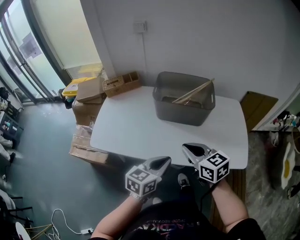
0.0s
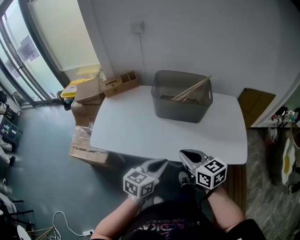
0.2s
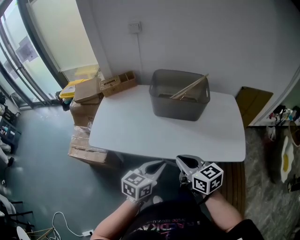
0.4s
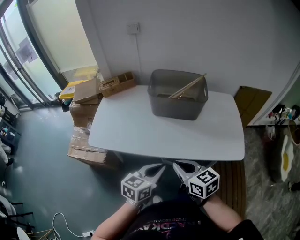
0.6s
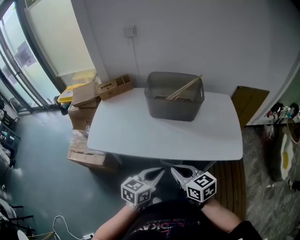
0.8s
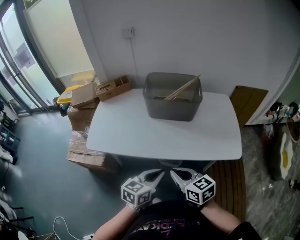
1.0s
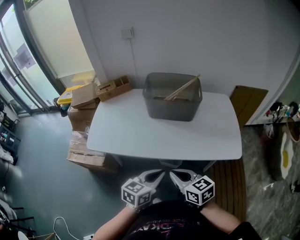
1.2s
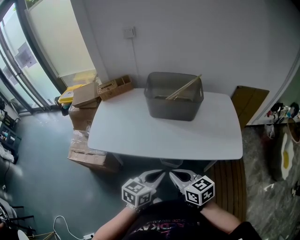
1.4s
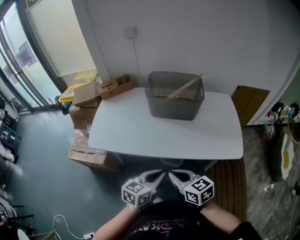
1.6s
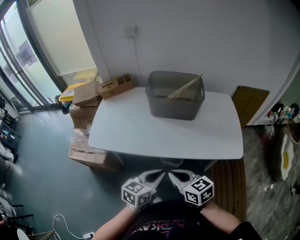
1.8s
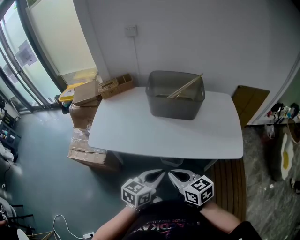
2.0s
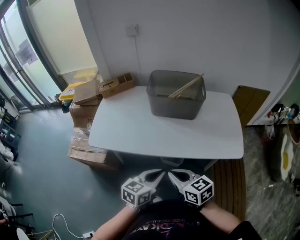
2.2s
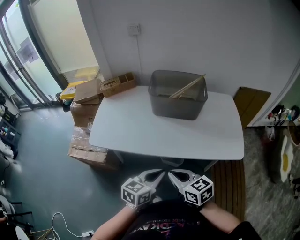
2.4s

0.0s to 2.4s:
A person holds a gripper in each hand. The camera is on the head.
0.0s to 1.2s: The right gripper moves backward, approximately 15 cm. Meanwhile the left gripper goes approximately 10 cm backward.
1.2s to 2.4s: The grippers move only a little.

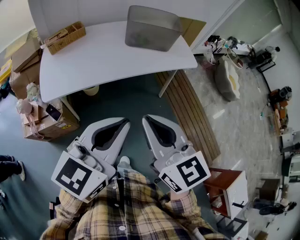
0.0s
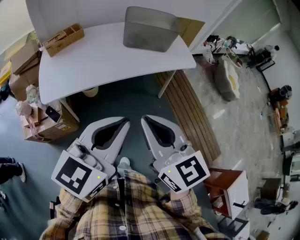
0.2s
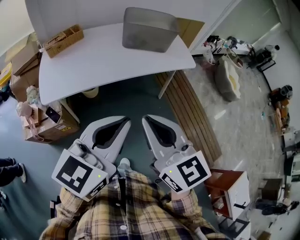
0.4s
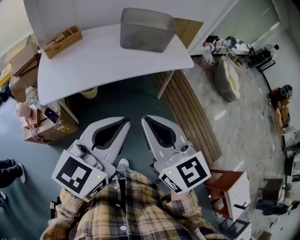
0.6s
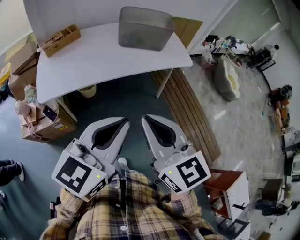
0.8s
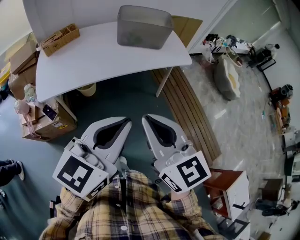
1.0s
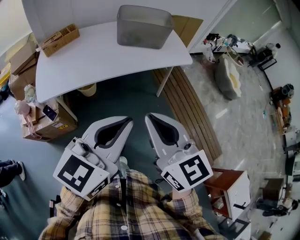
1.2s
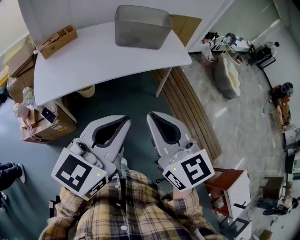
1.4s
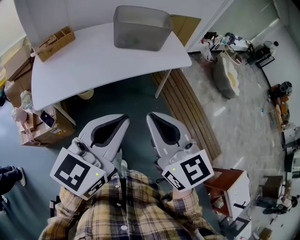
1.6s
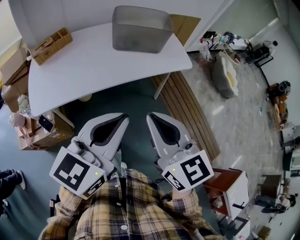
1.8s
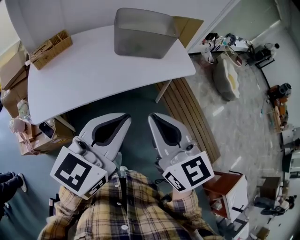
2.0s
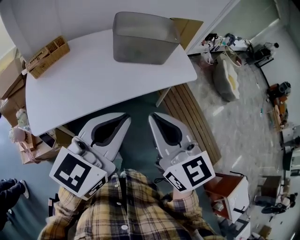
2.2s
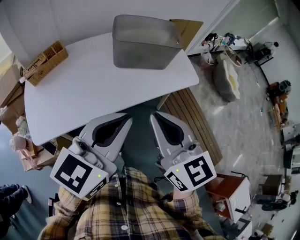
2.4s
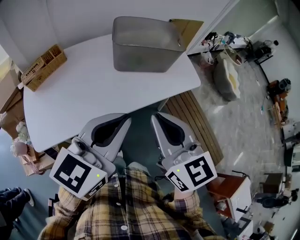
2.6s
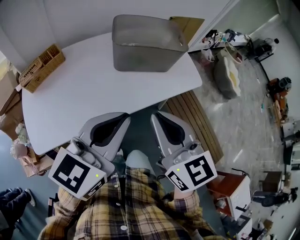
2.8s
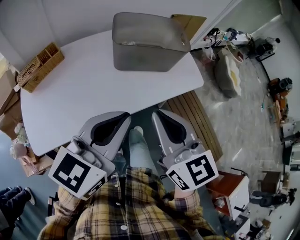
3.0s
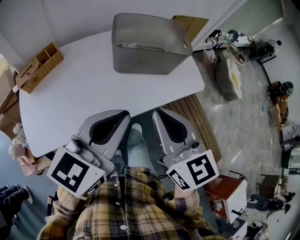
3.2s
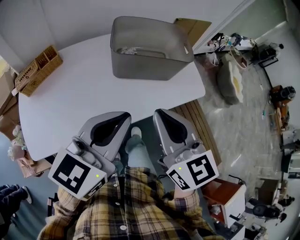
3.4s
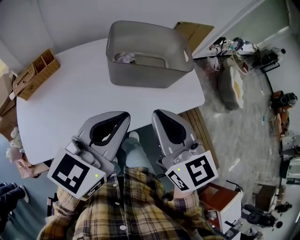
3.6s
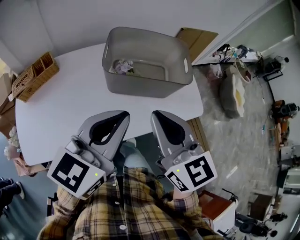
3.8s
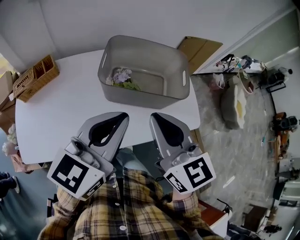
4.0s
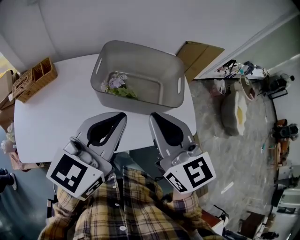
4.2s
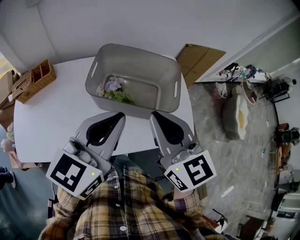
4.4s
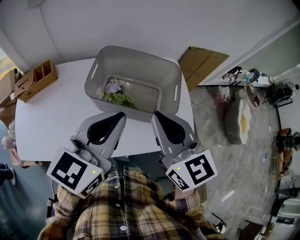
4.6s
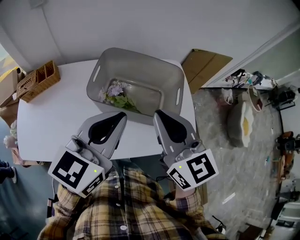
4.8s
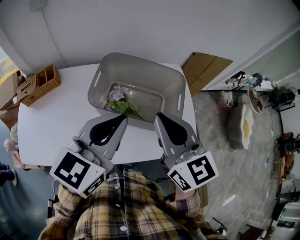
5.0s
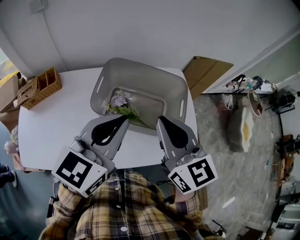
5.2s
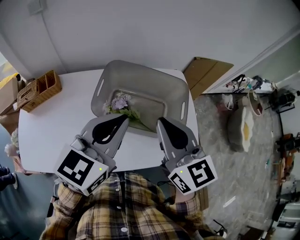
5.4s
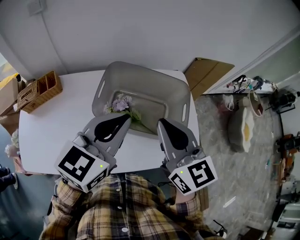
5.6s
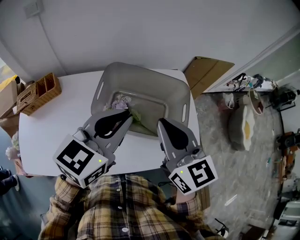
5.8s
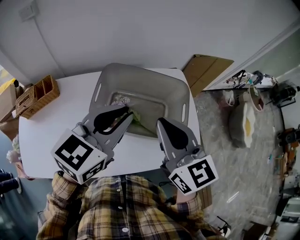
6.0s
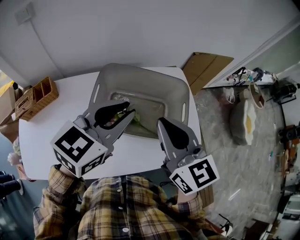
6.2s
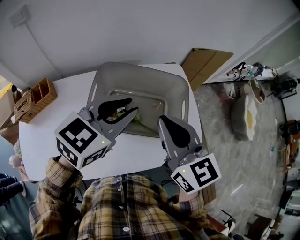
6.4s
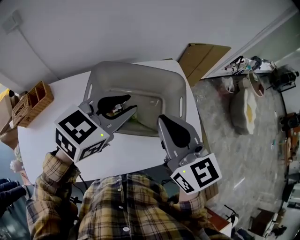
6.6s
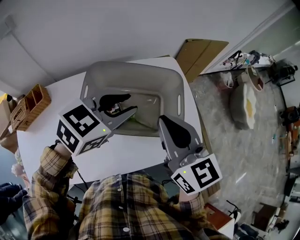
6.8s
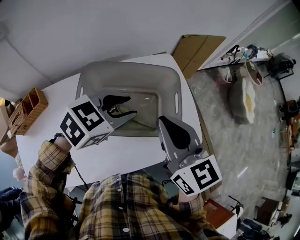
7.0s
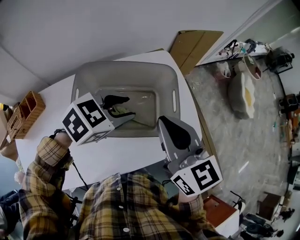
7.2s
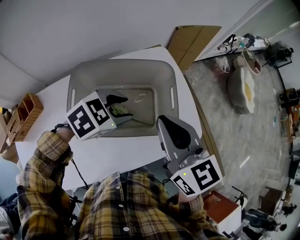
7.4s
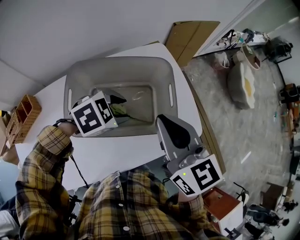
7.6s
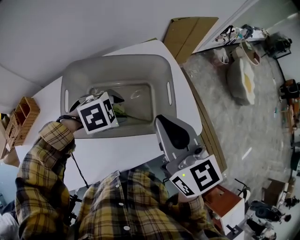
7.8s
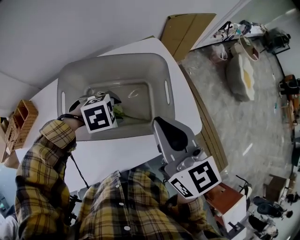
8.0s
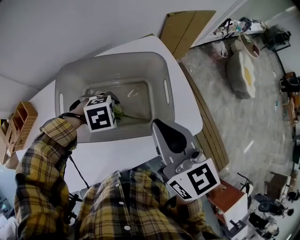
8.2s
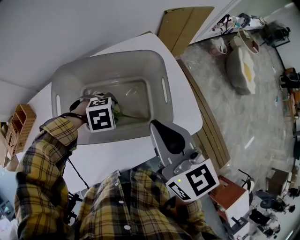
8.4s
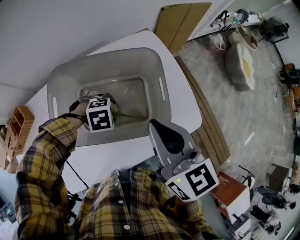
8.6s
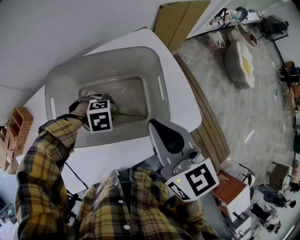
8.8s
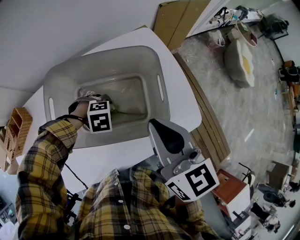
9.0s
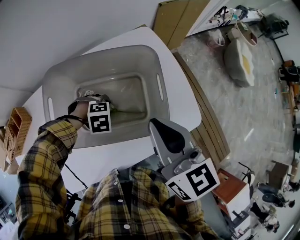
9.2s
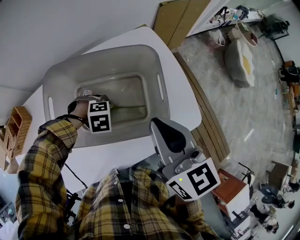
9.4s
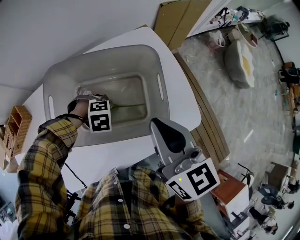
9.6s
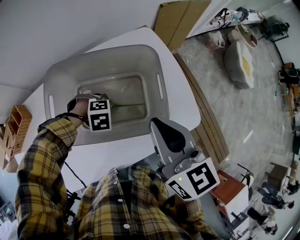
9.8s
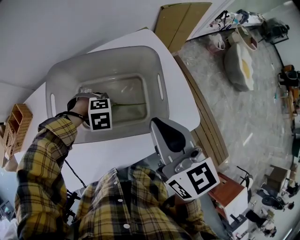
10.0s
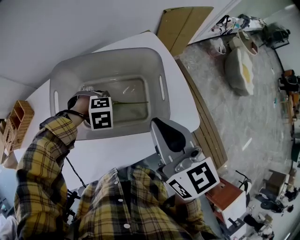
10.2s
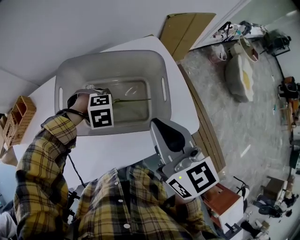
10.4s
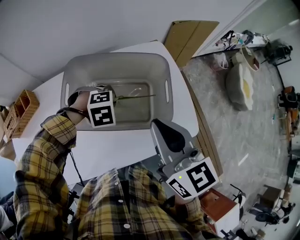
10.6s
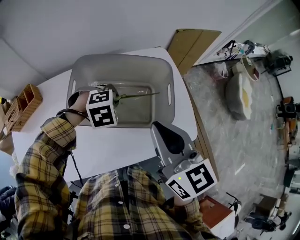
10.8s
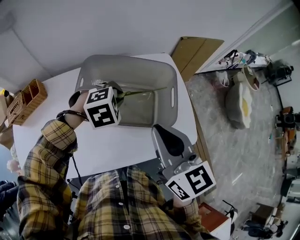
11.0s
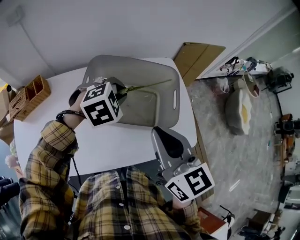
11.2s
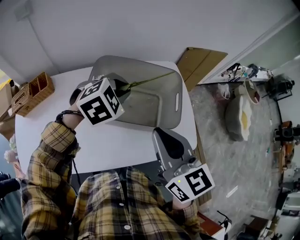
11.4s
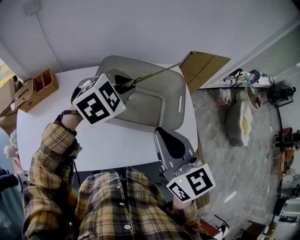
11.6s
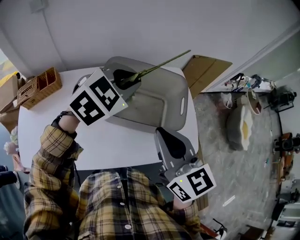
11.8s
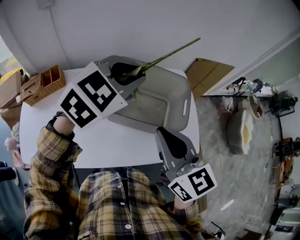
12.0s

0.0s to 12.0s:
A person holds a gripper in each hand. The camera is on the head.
0.0s to 1.6s: The two grippers go roughly 5 cm to the right.
1.6s to 3.0s: The grippers both shift forward by approximately 25 cm.
3.0s to 4.4s: The grippers both shift forward and to the right by about 25 cm.
4.4s to 6.0s: Both grippers move forward, some 10 cm.
6.0s to 7.6s: The left gripper is displaced downward by some 20 cm, tips its fingers downward by roughly 40 degrees, and opens; the right gripper moves approximately 5 cm.
7.6s to 9.0s: The left gripper travels downward by about 15 cm, and turns by about 30 degrees.
9.0s to 10.4s: The left gripper is displaced upward by roughly 5 cm, and closes.
10.4s to 12.0s: The right gripper shifts by roughly 10 cm. Meanwhile the left gripper shifts approximately 35 cm upward, and points its fingers about 50 degrees further upward.

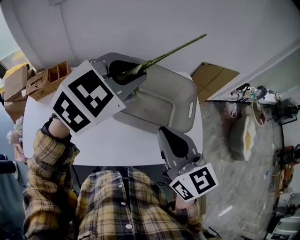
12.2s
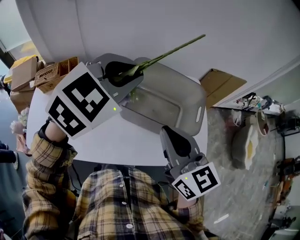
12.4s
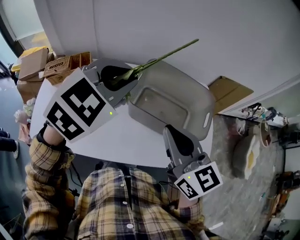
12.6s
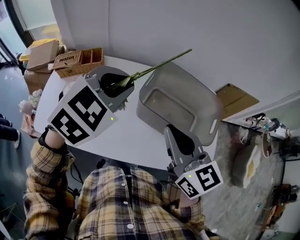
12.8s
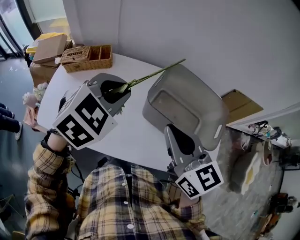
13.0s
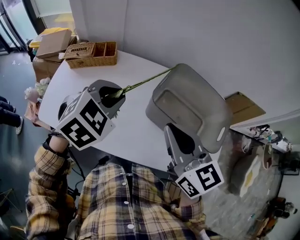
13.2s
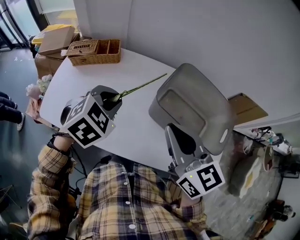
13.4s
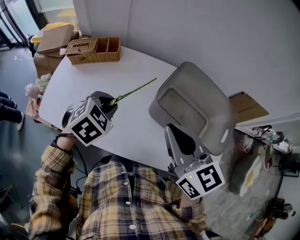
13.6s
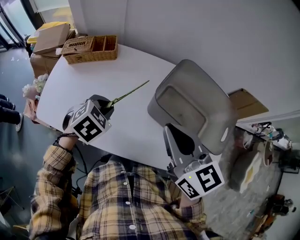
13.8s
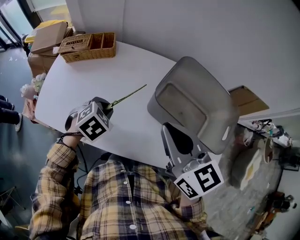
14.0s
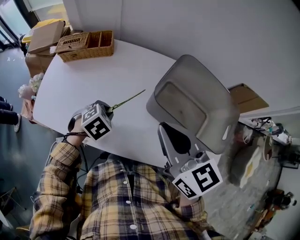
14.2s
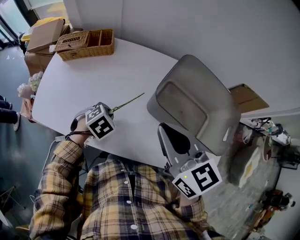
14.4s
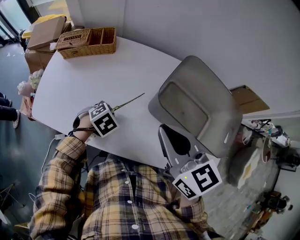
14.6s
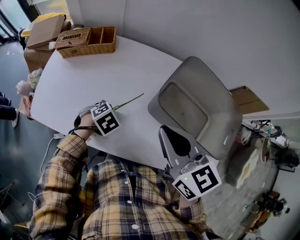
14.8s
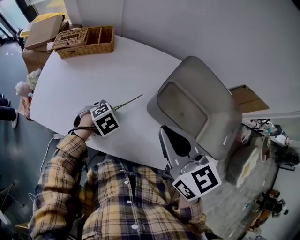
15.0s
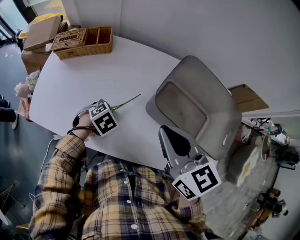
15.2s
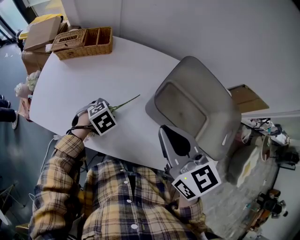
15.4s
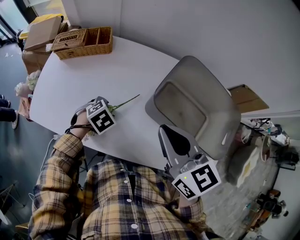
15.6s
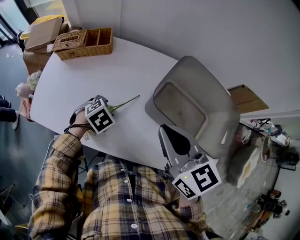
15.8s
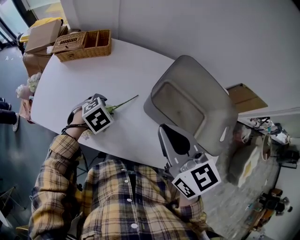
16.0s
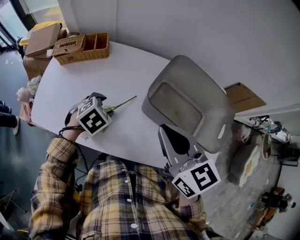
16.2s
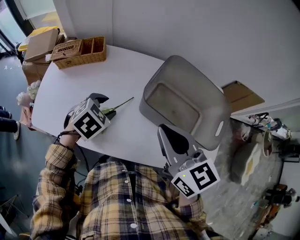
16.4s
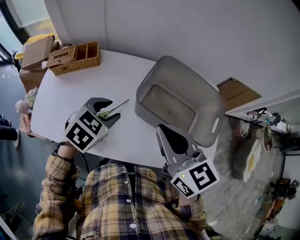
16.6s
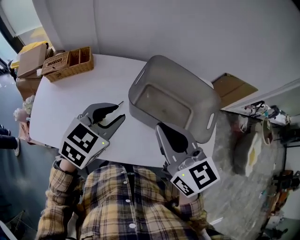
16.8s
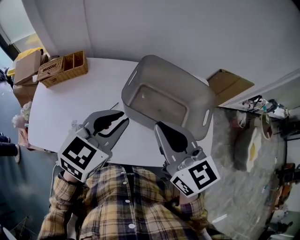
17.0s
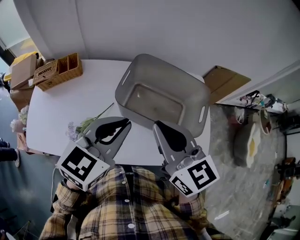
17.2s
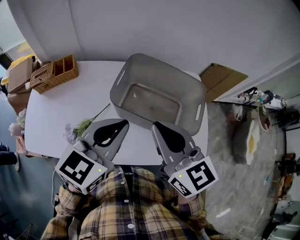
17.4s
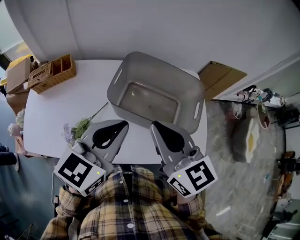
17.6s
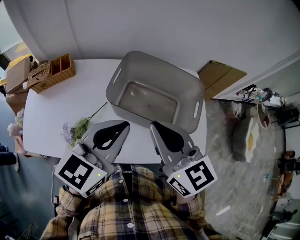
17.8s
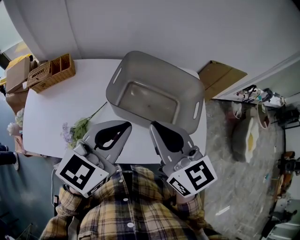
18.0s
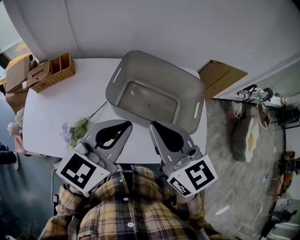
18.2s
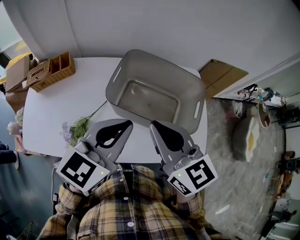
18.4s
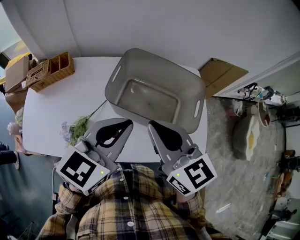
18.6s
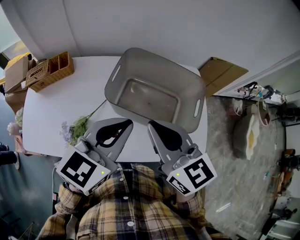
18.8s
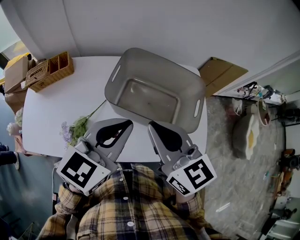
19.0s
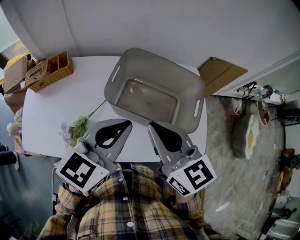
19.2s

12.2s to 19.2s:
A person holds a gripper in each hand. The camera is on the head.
12.2s to 13.6s: The left gripper travels to the left and downward by approximately 35 cm, and turns by about 40 degrees. The right gripper goes roughly 15 cm to the left, and swivels approximately 20 degrees.
13.6s to 15.0s: The left gripper is displaced downward by some 20 cm, and rotates some 20 degrees. Meanwhile the right gripper shifts by roughly 5 cm.
15.0s to 16.4s: The left gripper moves upward, about 15 cm.
16.4s to 17.8s: The right gripper shifts about 10 cm to the right; the left gripper goes approximately 25 cm upward and to the right, tilts its fingers roughly 50 degrees upward, and closes up.
17.8s to 19.2s: The grippers make only small movements.

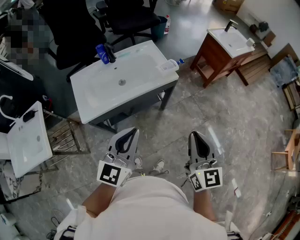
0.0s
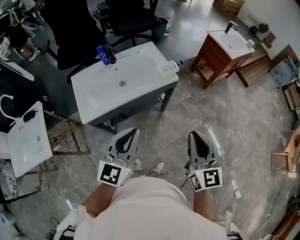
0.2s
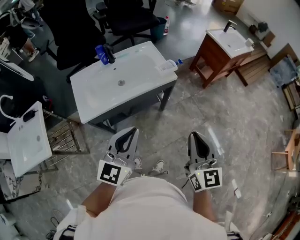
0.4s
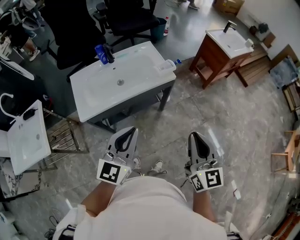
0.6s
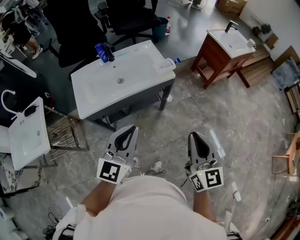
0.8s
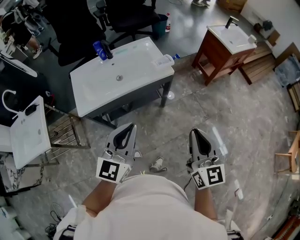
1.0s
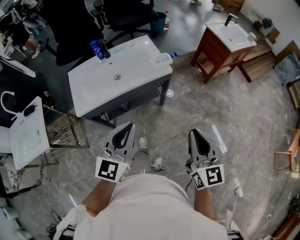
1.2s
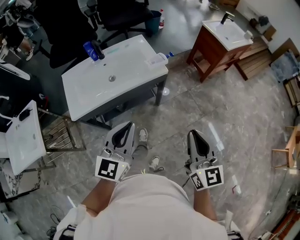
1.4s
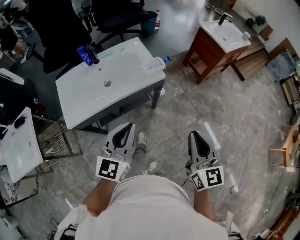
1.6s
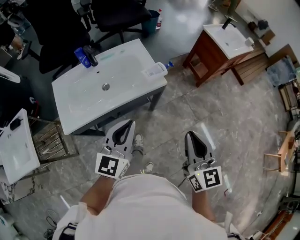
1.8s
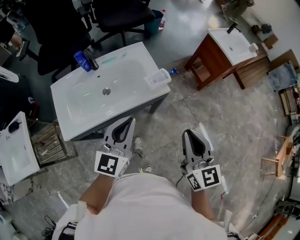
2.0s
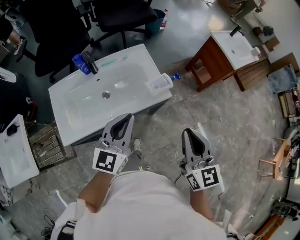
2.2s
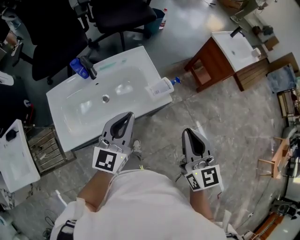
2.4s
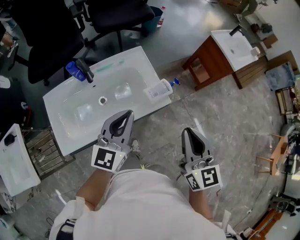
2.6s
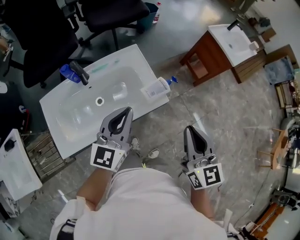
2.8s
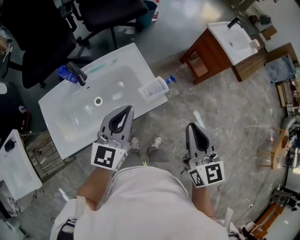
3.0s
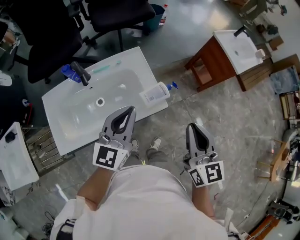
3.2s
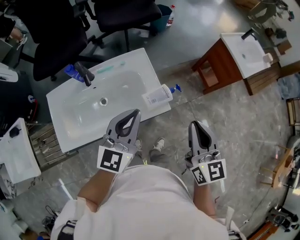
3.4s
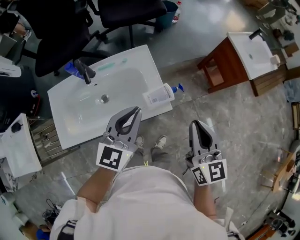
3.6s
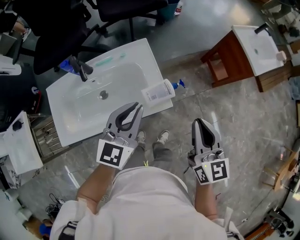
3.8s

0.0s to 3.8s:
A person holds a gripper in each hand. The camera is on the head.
0.0s to 1.2s: Both grippers travel together to the right, some 10 cm.
1.2s to 2.6s: The grippers both shift forward by roughly 35 cm.
2.6s to 3.8s: The left gripper shifts about 15 cm to the right and forward, while the right gripper shifts roughly 20 cm forward, to the right and downward.
